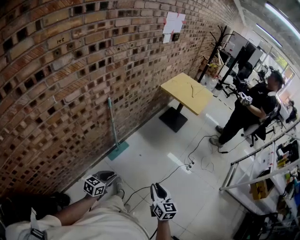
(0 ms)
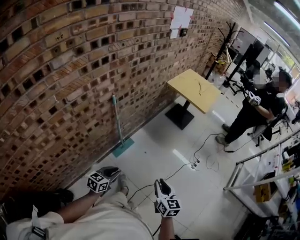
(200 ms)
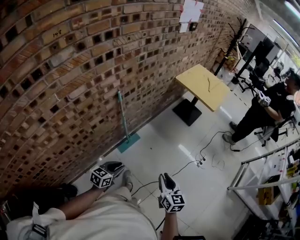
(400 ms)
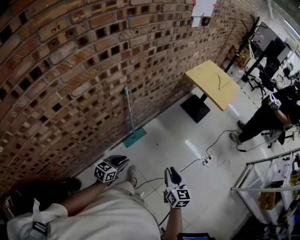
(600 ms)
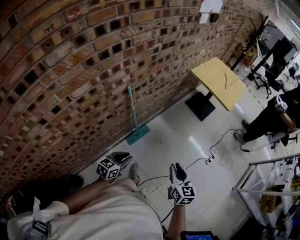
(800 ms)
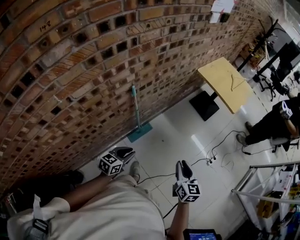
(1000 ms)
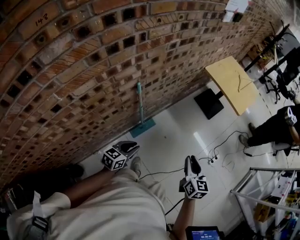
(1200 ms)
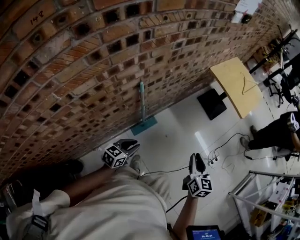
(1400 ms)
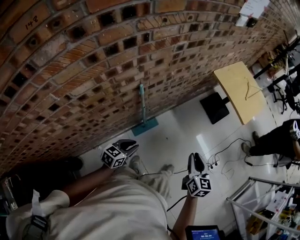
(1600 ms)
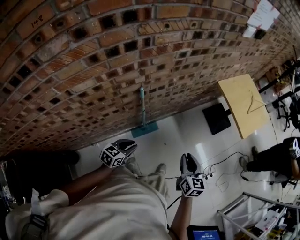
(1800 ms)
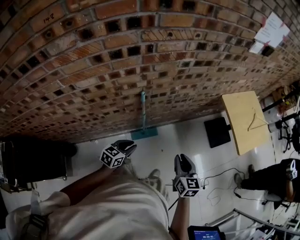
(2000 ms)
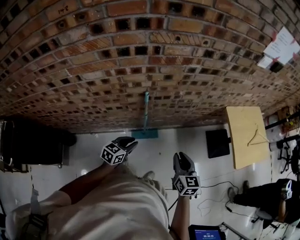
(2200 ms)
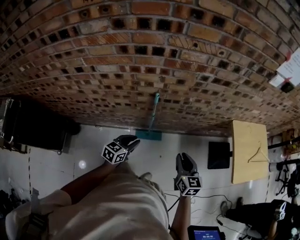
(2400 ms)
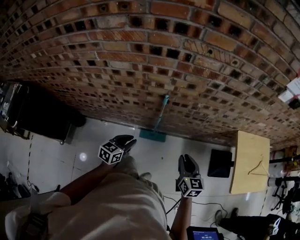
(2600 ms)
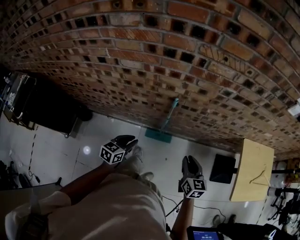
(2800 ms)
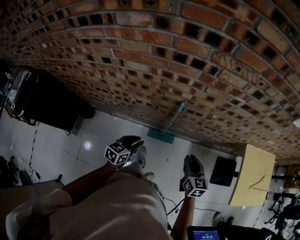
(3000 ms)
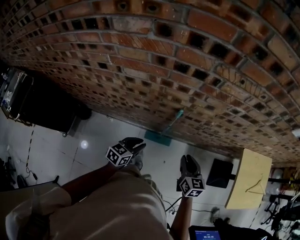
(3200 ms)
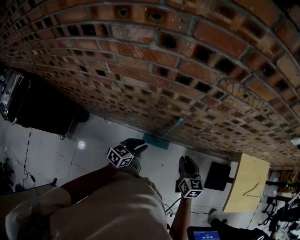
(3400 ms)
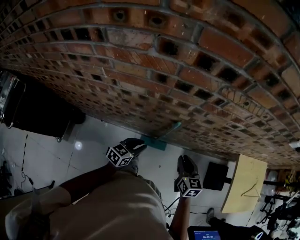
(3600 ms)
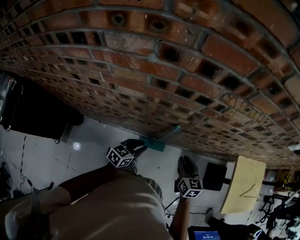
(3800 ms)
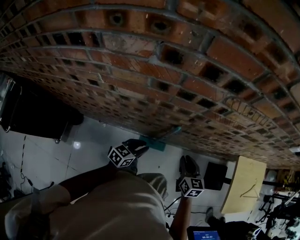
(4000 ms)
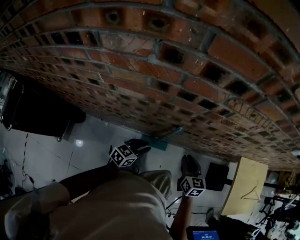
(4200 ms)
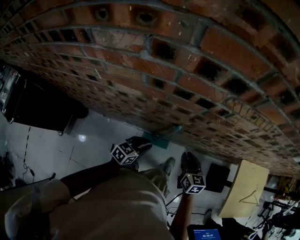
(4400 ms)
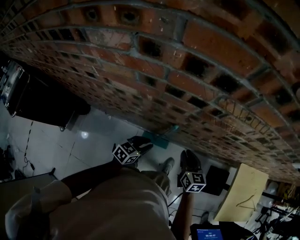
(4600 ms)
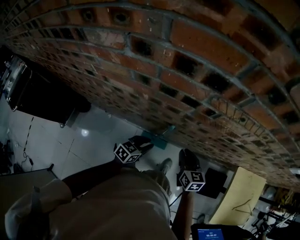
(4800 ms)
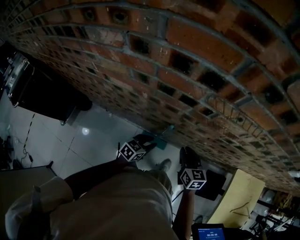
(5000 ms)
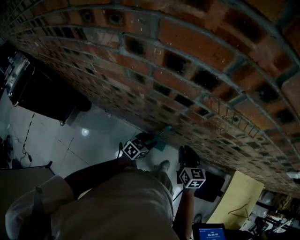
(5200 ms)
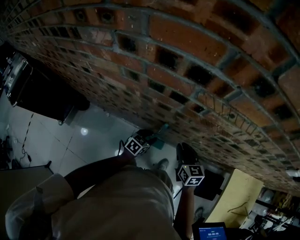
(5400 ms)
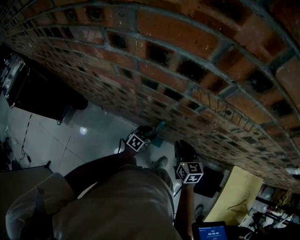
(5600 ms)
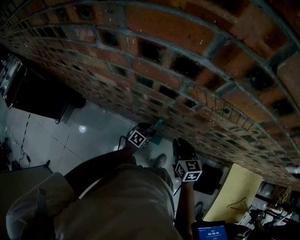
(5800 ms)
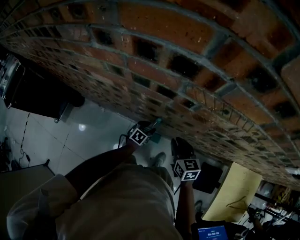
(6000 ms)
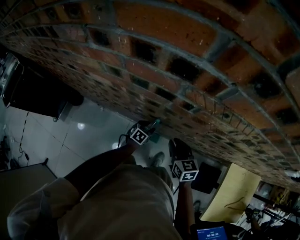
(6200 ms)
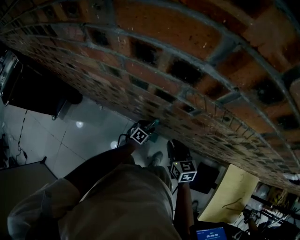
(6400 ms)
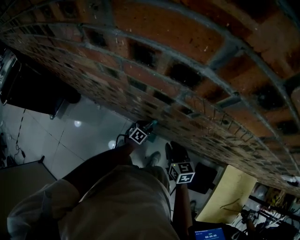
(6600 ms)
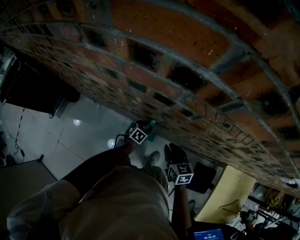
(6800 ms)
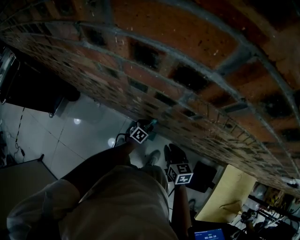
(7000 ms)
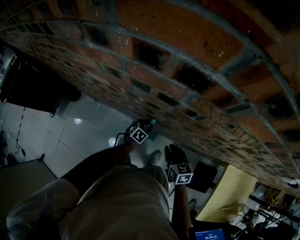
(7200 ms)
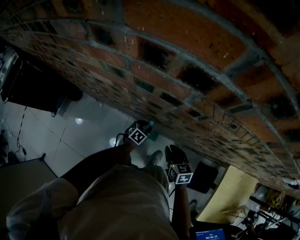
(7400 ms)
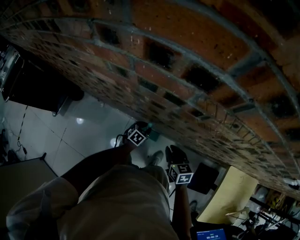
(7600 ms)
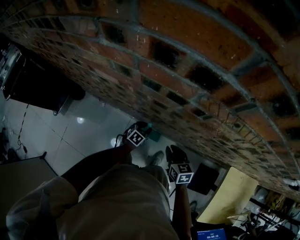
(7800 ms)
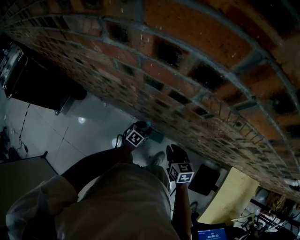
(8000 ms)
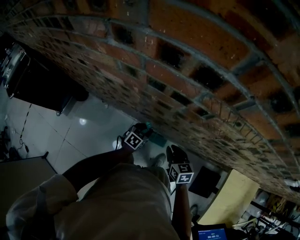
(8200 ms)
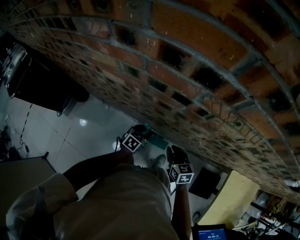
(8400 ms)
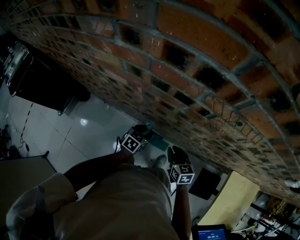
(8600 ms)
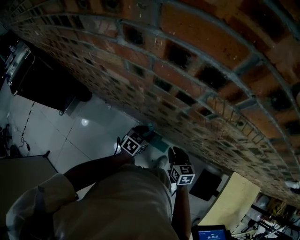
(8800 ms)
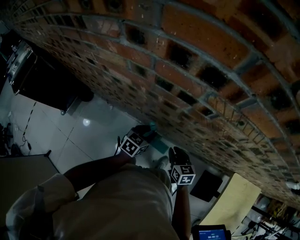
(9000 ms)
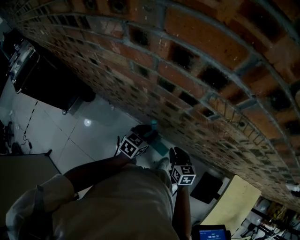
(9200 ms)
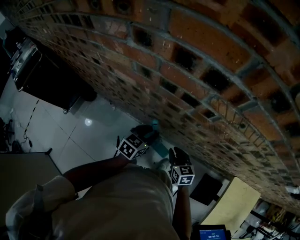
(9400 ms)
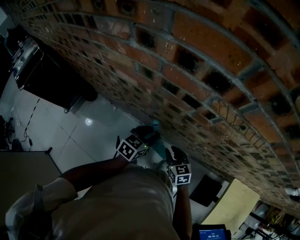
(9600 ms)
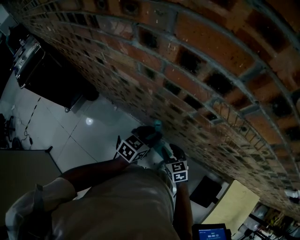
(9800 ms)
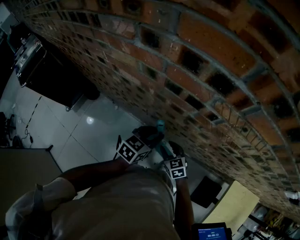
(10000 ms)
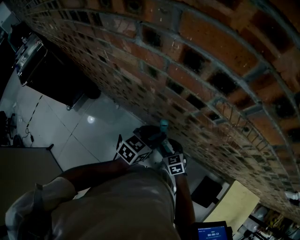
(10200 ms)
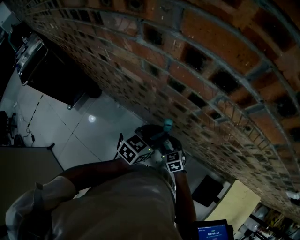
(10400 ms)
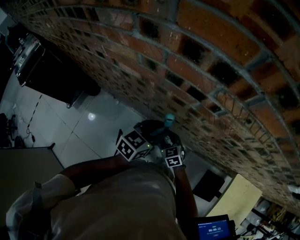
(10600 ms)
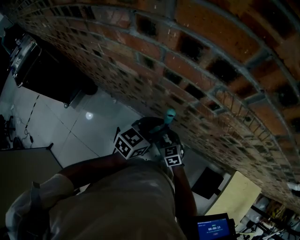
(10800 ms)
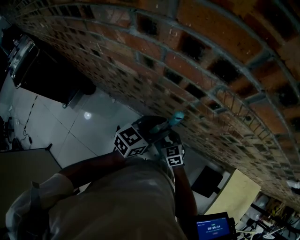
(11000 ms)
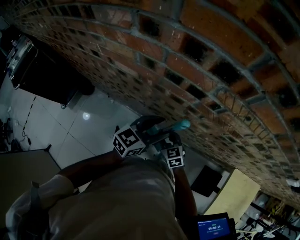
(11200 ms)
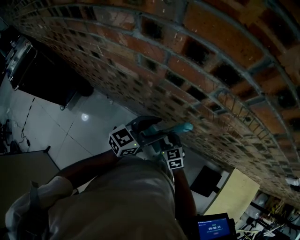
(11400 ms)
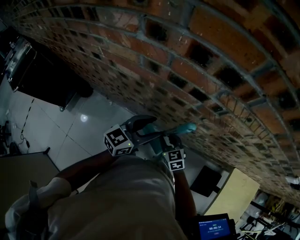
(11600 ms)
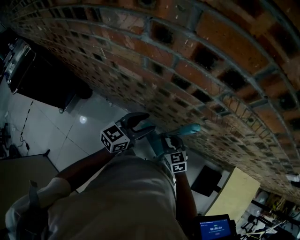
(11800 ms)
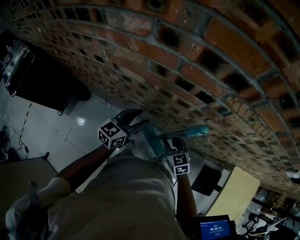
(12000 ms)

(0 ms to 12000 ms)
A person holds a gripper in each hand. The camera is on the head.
0 ms - 1600 ms: The two grippers go roughly 30 cm forward.
1600 ms - 3000 ms: The left gripper swivels roughly 50 degrees. Meanwhile the right gripper shifts by roughly 20 cm, and rotates approximately 50 degrees.
3000 ms - 4400 ms: The left gripper goes some 15 cm forward. Meanwhile the right gripper goes roughly 15 cm forward and to the left.
4400 ms - 6000 ms: The left gripper heads downward, forward and to the right, covering approximately 20 cm, and changes its angle by approximately 20 degrees. The right gripper heads forward, covering about 5 cm.
6000 ms - 7600 ms: The right gripper is displaced downward by some 5 cm.
7600 ms - 9000 ms: The left gripper travels upward by about 15 cm.
9000 ms - 10400 ms: The right gripper is displaced to the left by approximately 10 cm, swivels approximately 30 degrees, and opens up, while the left gripper travels upward by some 15 cm.
10400 ms - 12000 ms: The right gripper shifts roughly 5 cm upward. The left gripper heads to the left, covering some 10 cm, and opens its fingers.

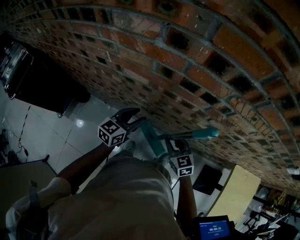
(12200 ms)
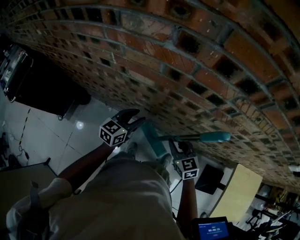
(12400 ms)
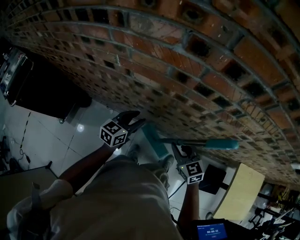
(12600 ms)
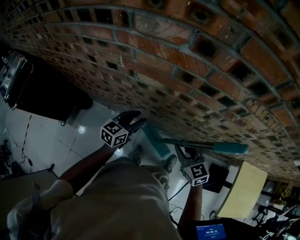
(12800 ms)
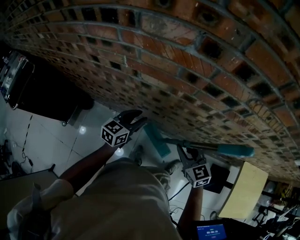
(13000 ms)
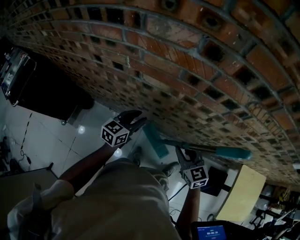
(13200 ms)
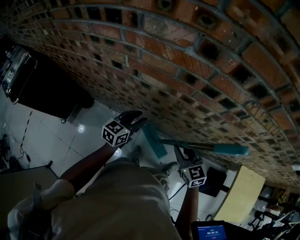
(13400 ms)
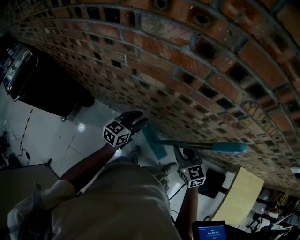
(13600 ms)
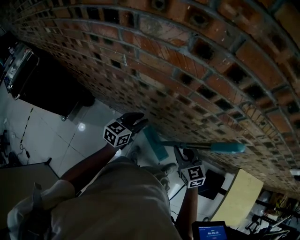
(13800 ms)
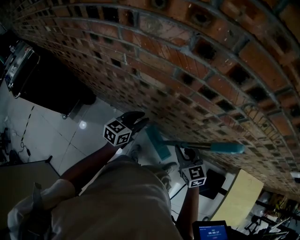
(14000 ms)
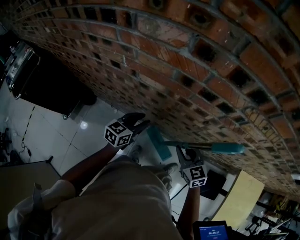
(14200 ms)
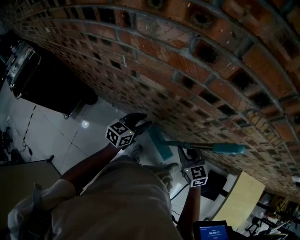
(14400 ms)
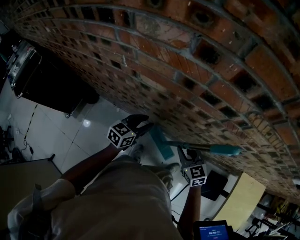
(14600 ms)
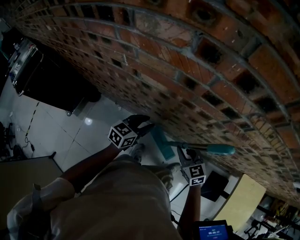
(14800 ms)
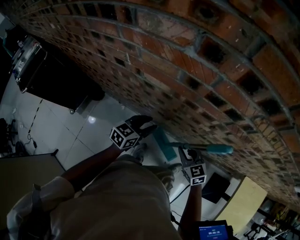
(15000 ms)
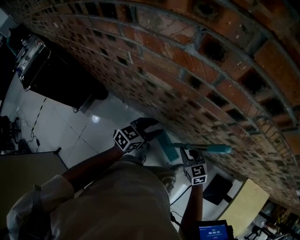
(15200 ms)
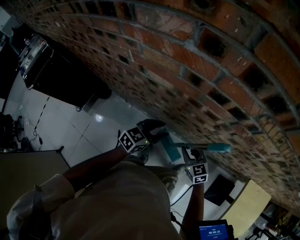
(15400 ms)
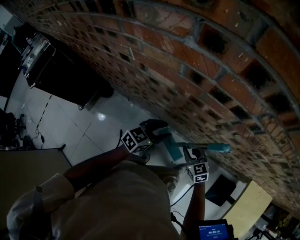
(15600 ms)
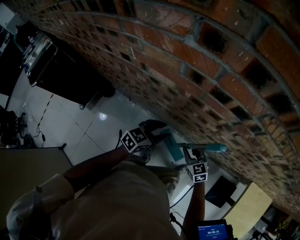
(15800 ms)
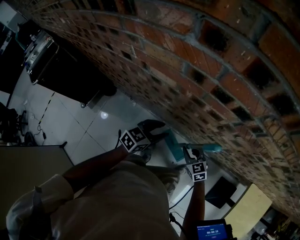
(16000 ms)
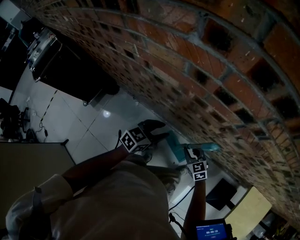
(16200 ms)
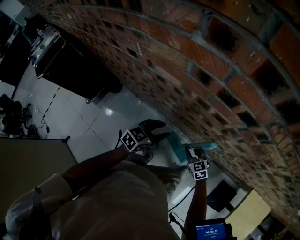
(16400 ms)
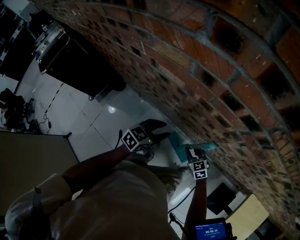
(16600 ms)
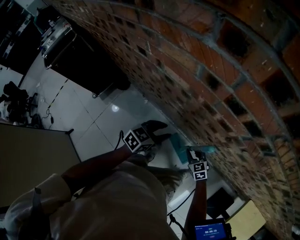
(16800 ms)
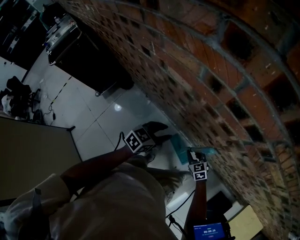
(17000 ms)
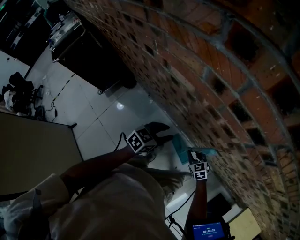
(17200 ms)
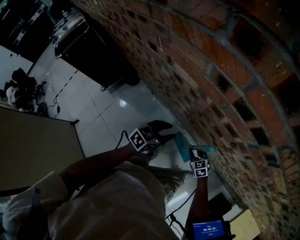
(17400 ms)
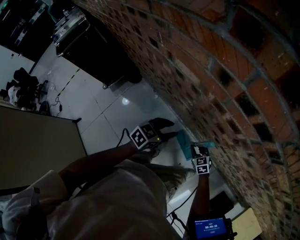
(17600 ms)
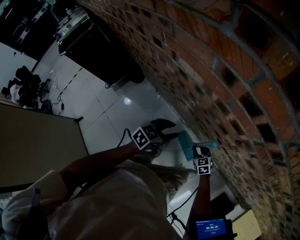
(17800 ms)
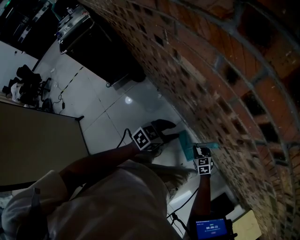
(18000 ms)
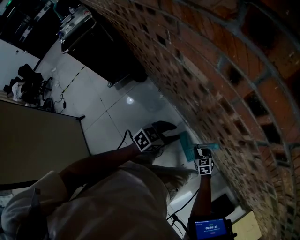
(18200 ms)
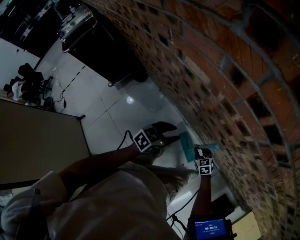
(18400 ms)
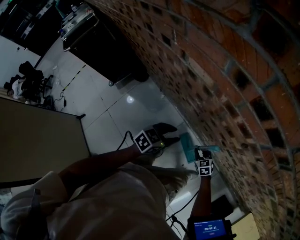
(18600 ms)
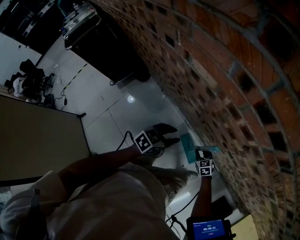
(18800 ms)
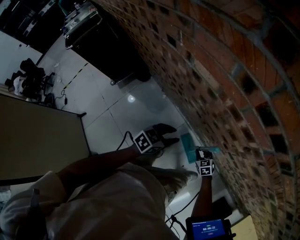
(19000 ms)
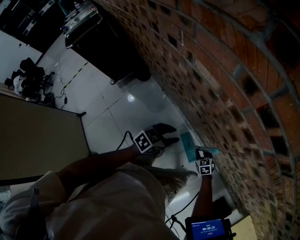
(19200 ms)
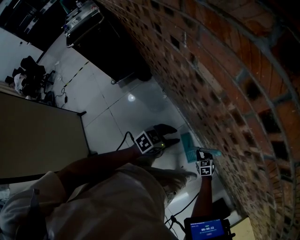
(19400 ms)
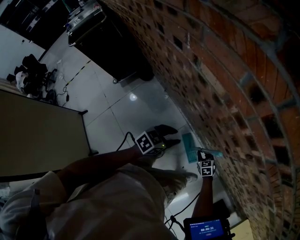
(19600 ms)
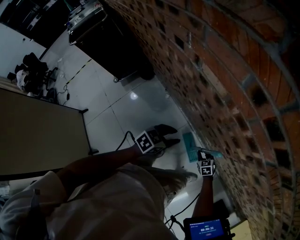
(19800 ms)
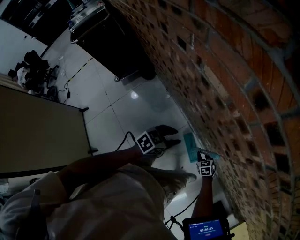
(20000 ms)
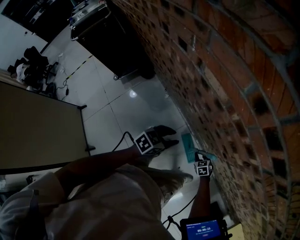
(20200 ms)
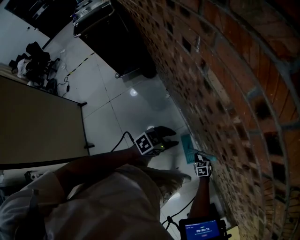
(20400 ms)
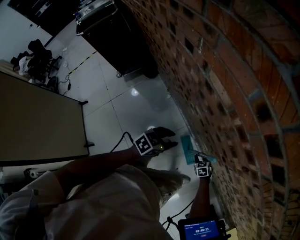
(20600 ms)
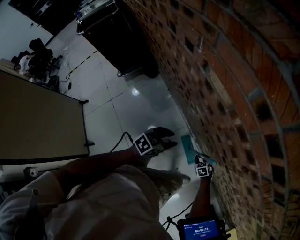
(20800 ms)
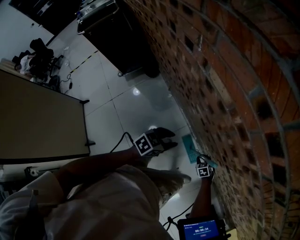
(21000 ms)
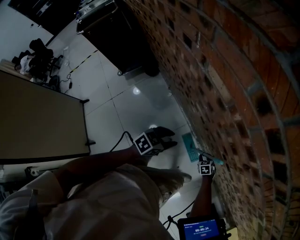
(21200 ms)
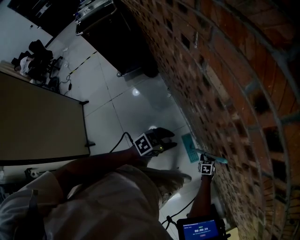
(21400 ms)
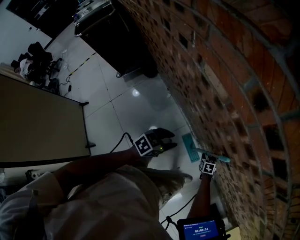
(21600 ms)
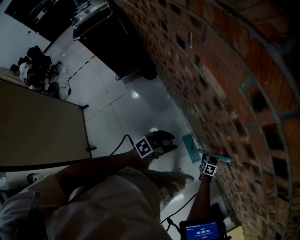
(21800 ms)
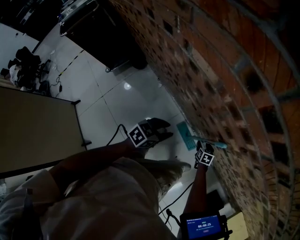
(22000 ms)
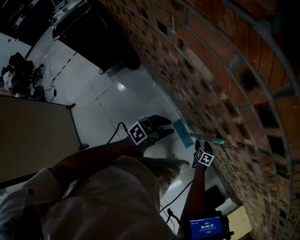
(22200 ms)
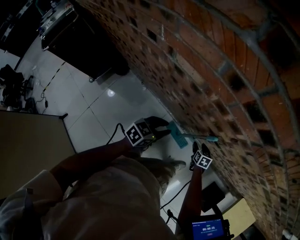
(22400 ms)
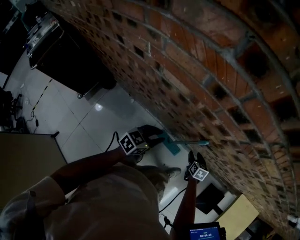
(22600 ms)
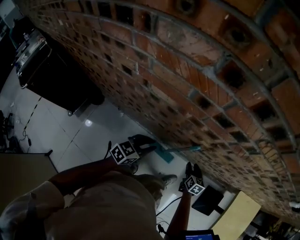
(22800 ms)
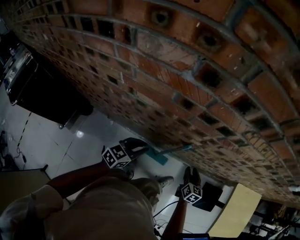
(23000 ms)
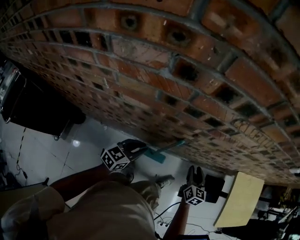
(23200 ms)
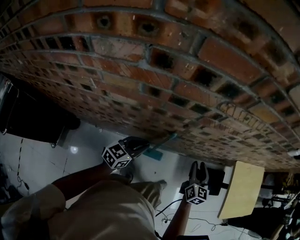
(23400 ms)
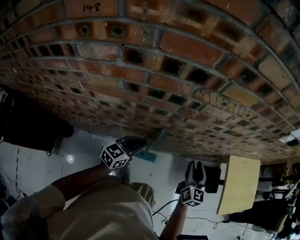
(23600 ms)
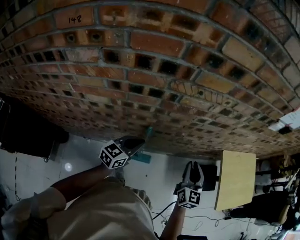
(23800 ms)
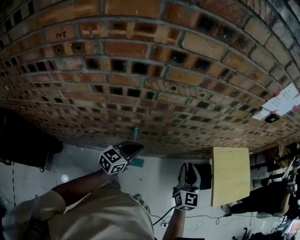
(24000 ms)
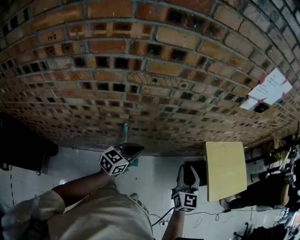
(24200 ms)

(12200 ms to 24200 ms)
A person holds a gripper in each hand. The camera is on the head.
12200 ms - 13800 ms: The right gripper shifts about 5 cm upward.
13800 ms - 15200 ms: The left gripper moves about 5 cm, while the right gripper goes about 10 cm downward.
15200 ms - 16600 ms: The right gripper is displaced downward by approximately 15 cm.
16600 ms - 18200 ms: The right gripper travels downward by approximately 10 cm.
18200 ms - 19800 ms: The right gripper goes about 5 cm downward.
19800 ms - 21200 ms: The right gripper is displaced downward by about 5 cm.
21200 ms - 22600 ms: The left gripper is displaced upward by some 5 cm, and changes its angle by roughly 20 degrees, while the right gripper heads upward, covering roughly 15 cm, rotates around the line of its fingers by approximately 50 degrees, clockwise from behind, and opens.
22600 ms - 24200 ms: The left gripper moves some 30 cm, swivels roughly 30 degrees, and closes its fingers; the right gripper is displaced upward by some 40 cm, angles its fingers upward, by approximately 40 degrees, and closes.
